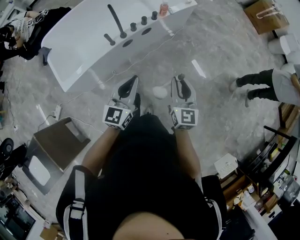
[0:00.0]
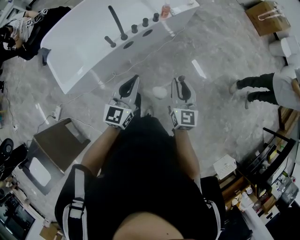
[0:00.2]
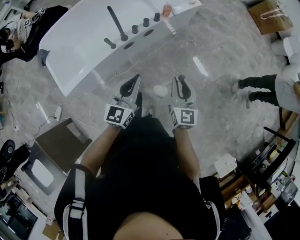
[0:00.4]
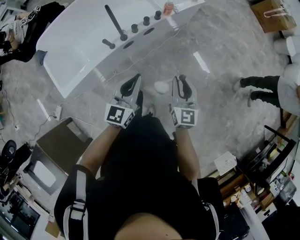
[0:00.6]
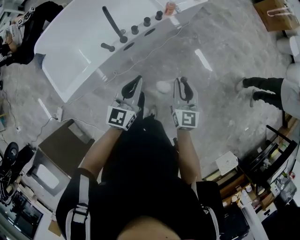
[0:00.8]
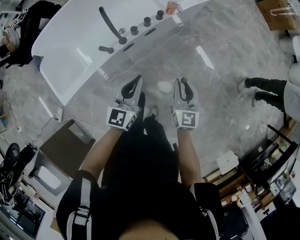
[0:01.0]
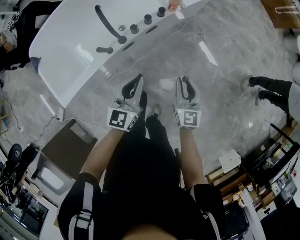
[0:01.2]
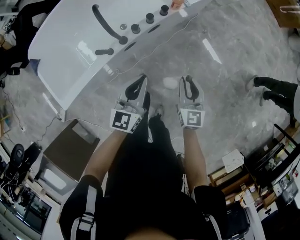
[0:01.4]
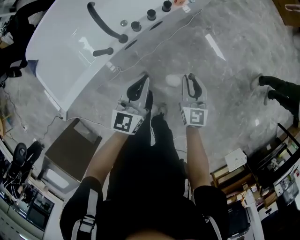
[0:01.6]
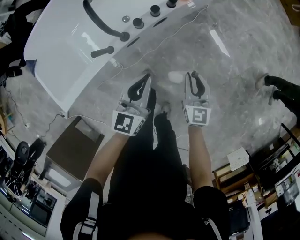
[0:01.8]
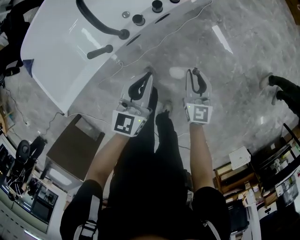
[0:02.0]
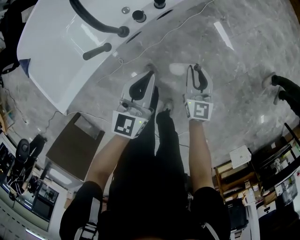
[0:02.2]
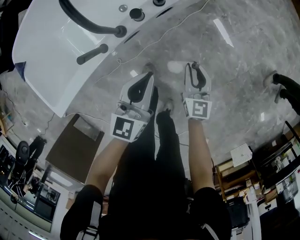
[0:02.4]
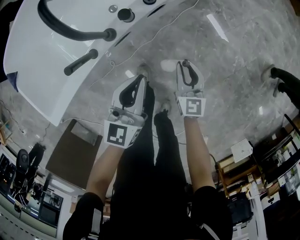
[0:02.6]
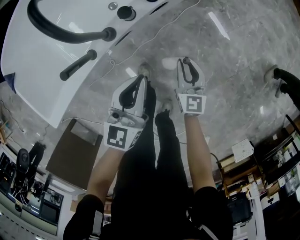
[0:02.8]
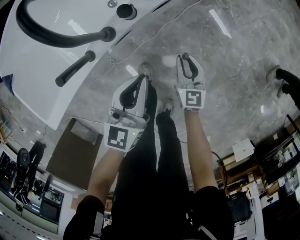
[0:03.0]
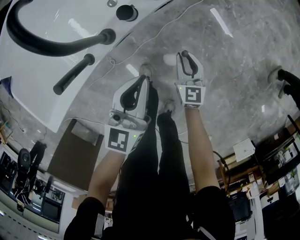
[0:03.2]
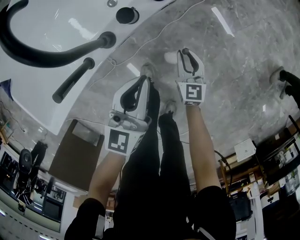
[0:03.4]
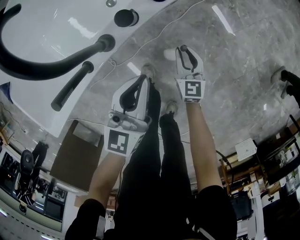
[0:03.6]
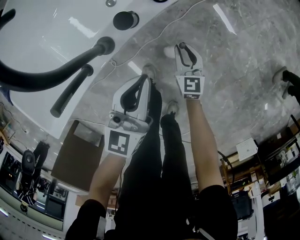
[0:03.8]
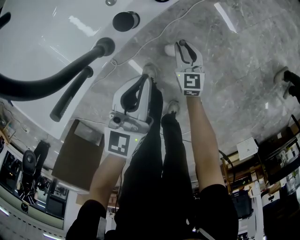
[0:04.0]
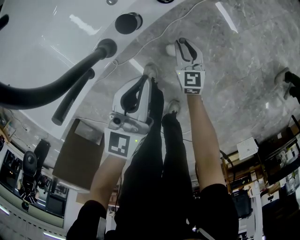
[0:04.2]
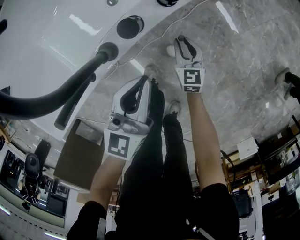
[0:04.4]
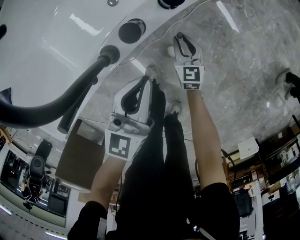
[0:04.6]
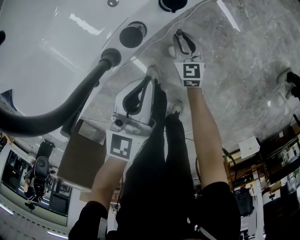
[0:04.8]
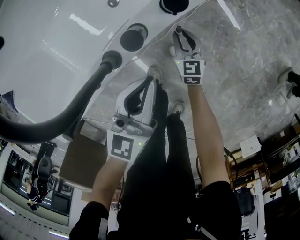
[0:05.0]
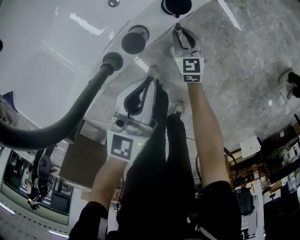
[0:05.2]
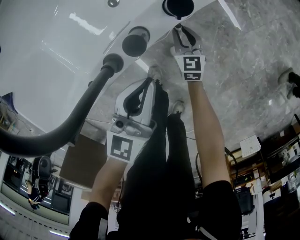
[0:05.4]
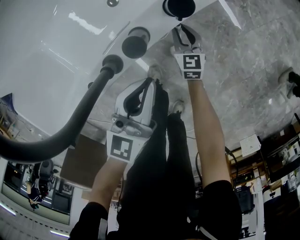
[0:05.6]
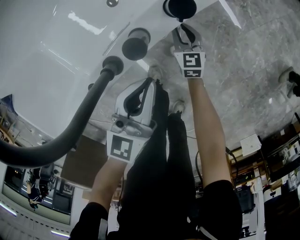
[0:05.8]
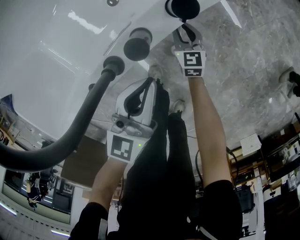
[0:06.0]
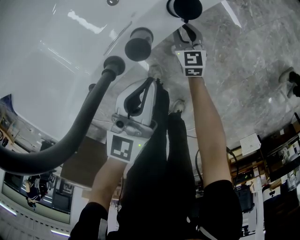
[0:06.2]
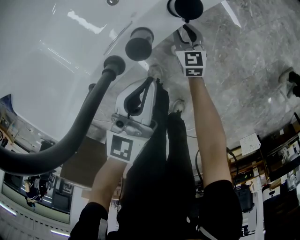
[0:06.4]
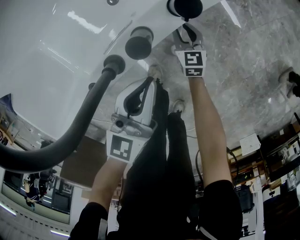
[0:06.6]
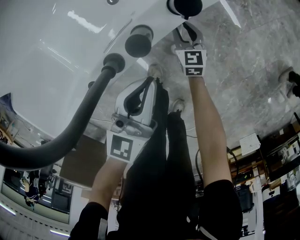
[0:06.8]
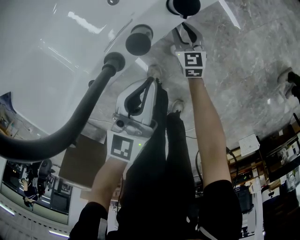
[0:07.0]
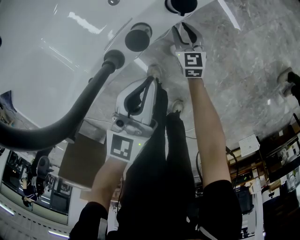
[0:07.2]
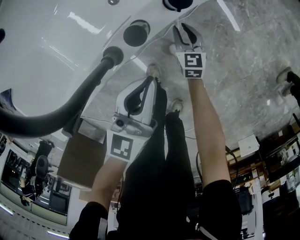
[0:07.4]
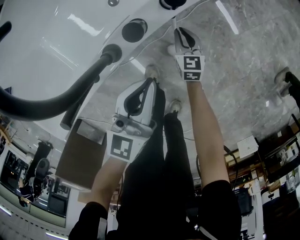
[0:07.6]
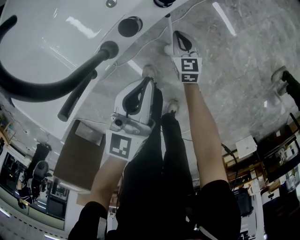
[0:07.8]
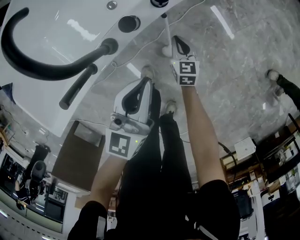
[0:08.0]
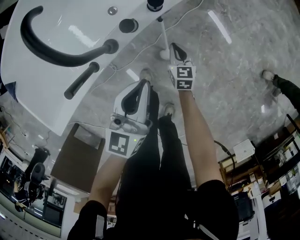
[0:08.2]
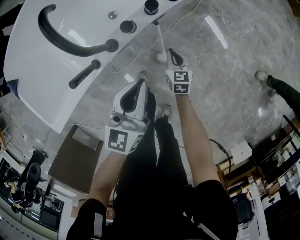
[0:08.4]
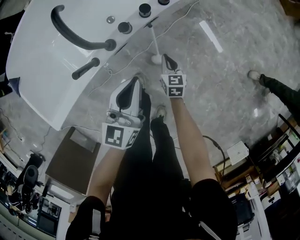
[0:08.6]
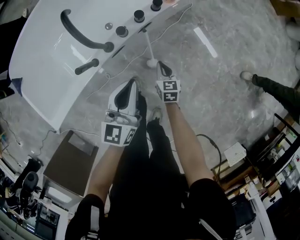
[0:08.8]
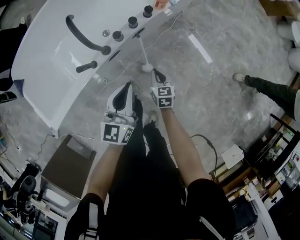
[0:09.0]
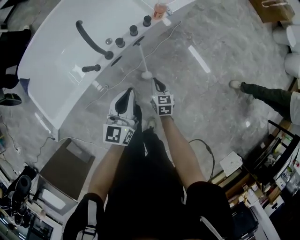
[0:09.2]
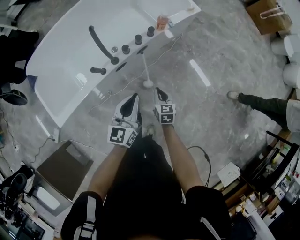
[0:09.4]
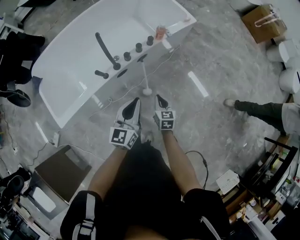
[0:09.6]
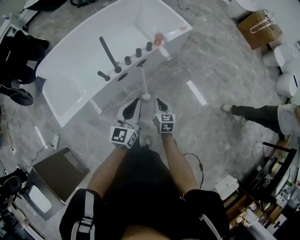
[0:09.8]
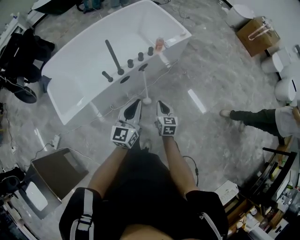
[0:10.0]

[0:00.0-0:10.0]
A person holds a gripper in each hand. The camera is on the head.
0:00.0 to 0:01.4: The right gripper goes some 30 cm downward and forward. Meanwhile the left gripper goes approximately 25 cm forward and downward.
0:01.4 to 0:02.8: Both grippers move downward, some 25 cm.
0:02.8 to 0:04.2: The right gripper moves downward and forward, approximately 20 cm; the left gripper heads downward and forward, covering some 10 cm.
0:04.2 to 0:05.8: The right gripper heads forward, covering approximately 10 cm.
0:05.8 to 0:07.2: The two grippers keep their place.
0:07.2 to 0:08.6: Both grippers move upward and backward, roughly 20 cm. The right gripper closes.
0:08.6 to 0:10.0: The two grippers go approximately 35 cm upward and backward.

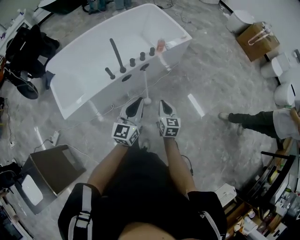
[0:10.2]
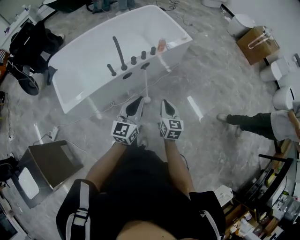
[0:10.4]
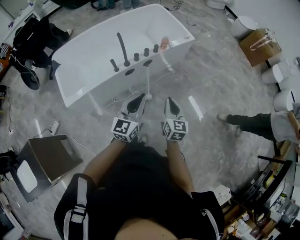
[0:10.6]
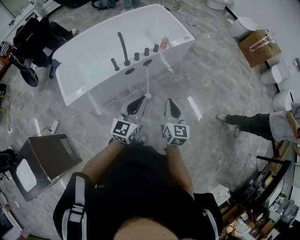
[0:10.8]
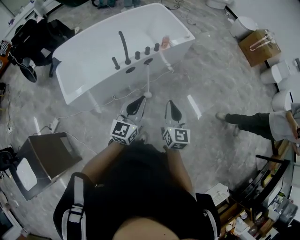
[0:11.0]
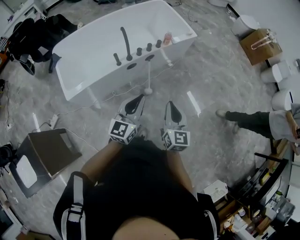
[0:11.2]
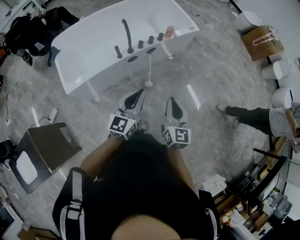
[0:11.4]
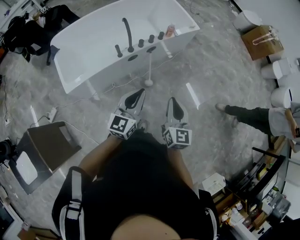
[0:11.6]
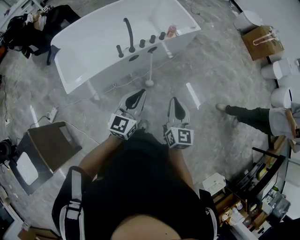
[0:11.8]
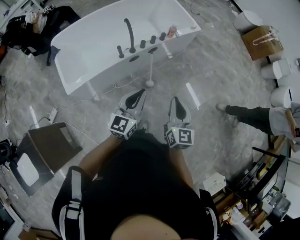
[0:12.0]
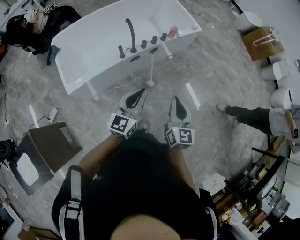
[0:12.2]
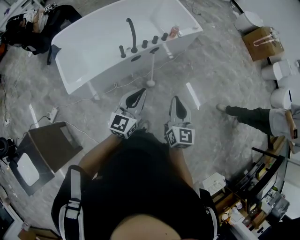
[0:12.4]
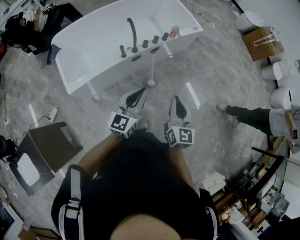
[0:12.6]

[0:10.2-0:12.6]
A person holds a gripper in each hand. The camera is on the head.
0:10.2 to 0:11.4: The left gripper heads backward and upward, covering roughly 10 cm. The right gripper goes approximately 20 cm upward and backward.
0:11.4 to 0:12.6: The grippers make only small movements.

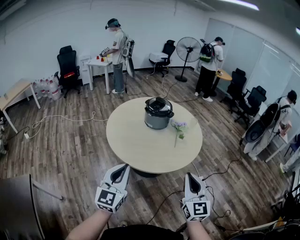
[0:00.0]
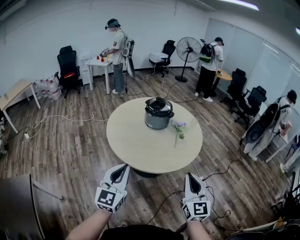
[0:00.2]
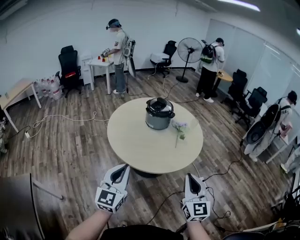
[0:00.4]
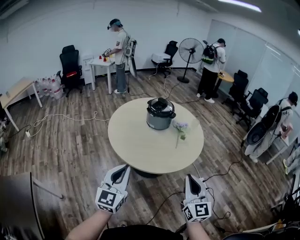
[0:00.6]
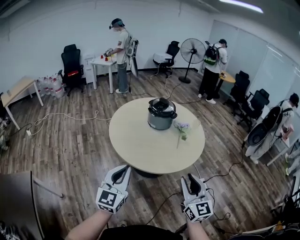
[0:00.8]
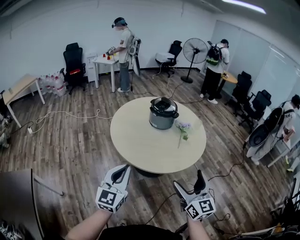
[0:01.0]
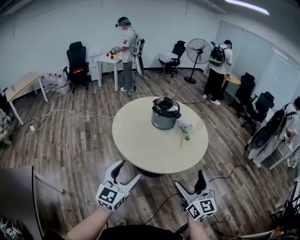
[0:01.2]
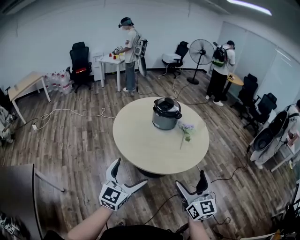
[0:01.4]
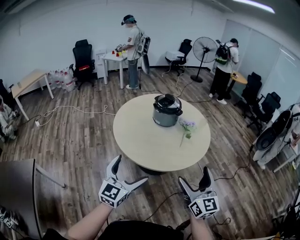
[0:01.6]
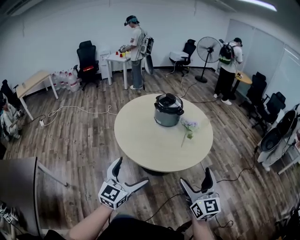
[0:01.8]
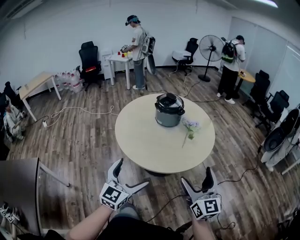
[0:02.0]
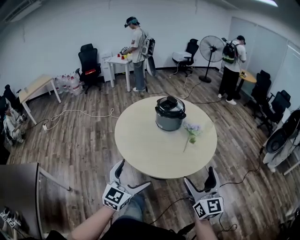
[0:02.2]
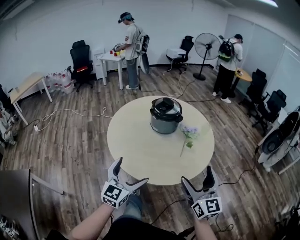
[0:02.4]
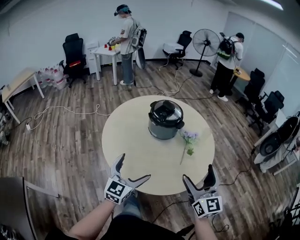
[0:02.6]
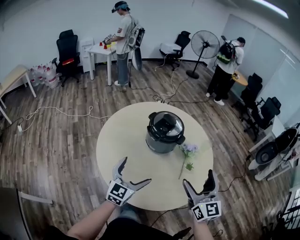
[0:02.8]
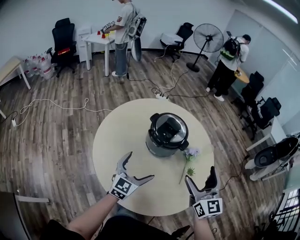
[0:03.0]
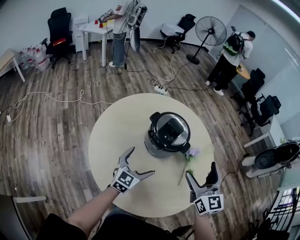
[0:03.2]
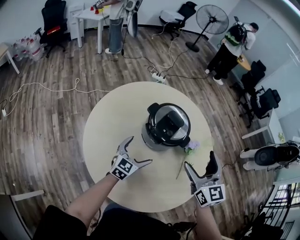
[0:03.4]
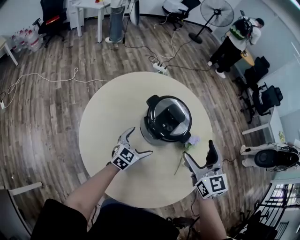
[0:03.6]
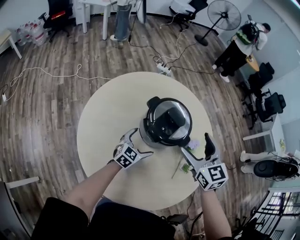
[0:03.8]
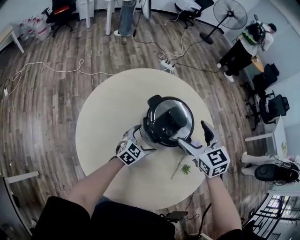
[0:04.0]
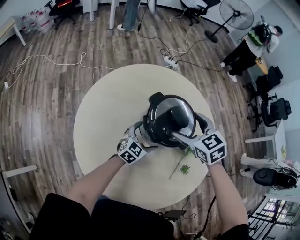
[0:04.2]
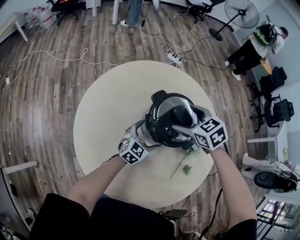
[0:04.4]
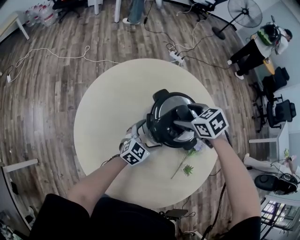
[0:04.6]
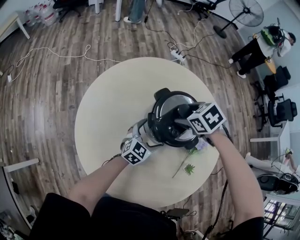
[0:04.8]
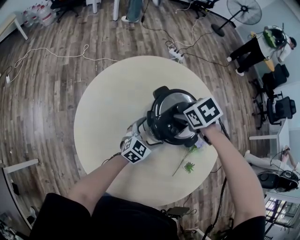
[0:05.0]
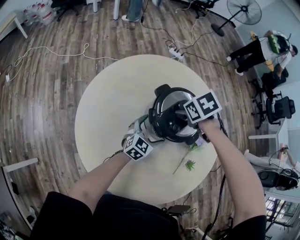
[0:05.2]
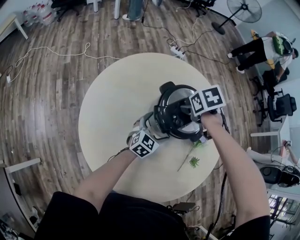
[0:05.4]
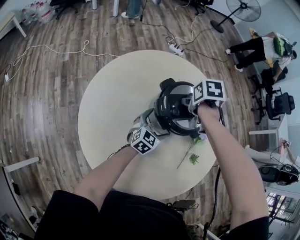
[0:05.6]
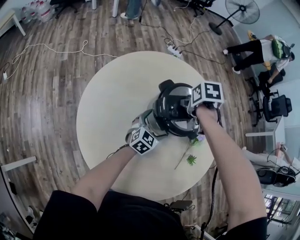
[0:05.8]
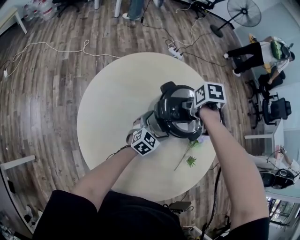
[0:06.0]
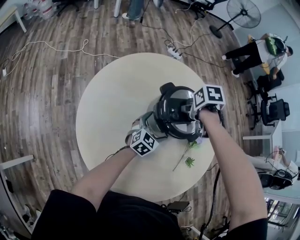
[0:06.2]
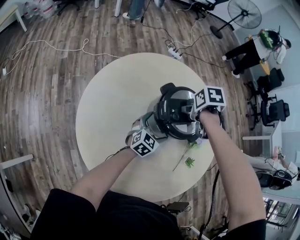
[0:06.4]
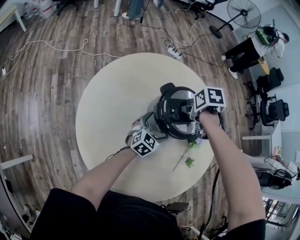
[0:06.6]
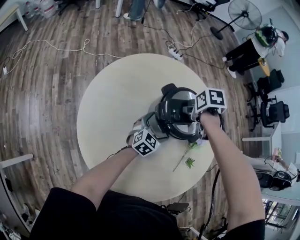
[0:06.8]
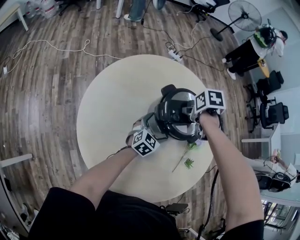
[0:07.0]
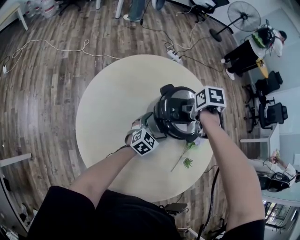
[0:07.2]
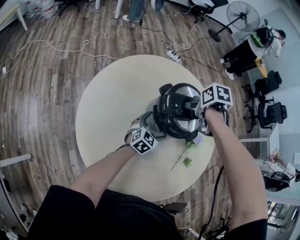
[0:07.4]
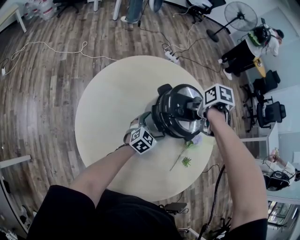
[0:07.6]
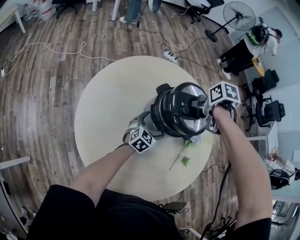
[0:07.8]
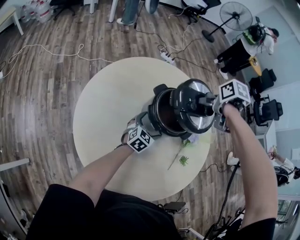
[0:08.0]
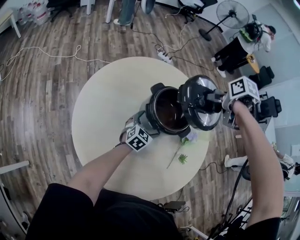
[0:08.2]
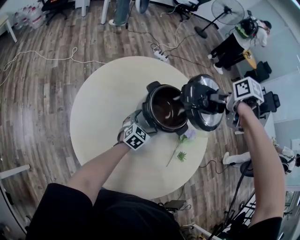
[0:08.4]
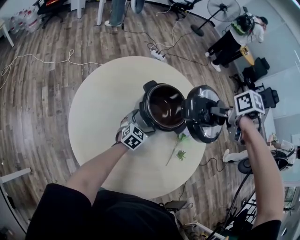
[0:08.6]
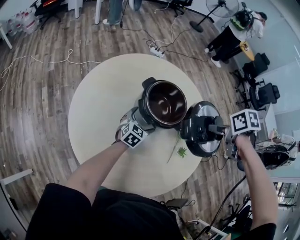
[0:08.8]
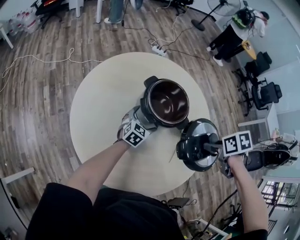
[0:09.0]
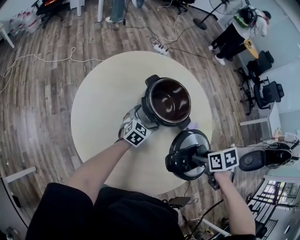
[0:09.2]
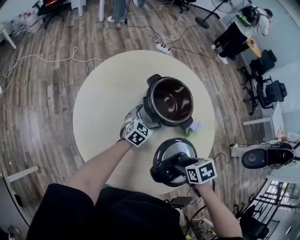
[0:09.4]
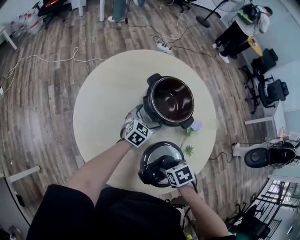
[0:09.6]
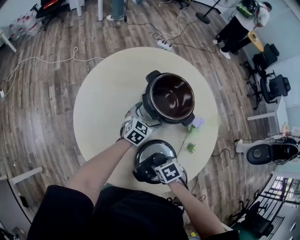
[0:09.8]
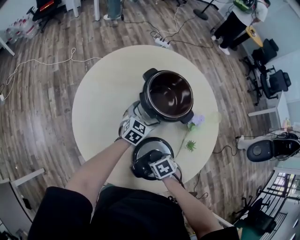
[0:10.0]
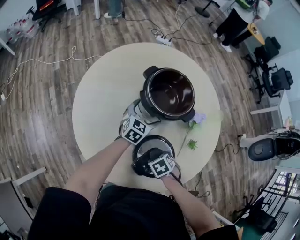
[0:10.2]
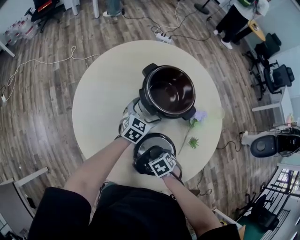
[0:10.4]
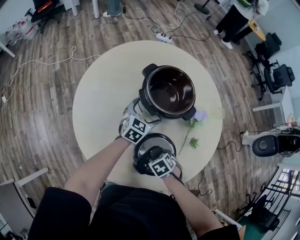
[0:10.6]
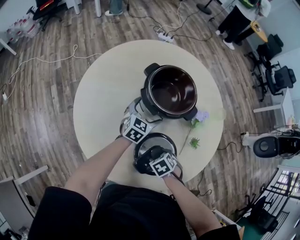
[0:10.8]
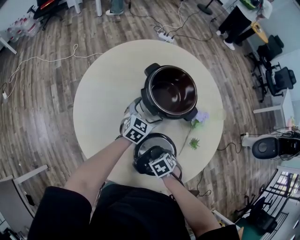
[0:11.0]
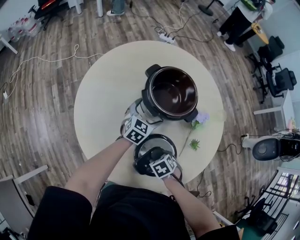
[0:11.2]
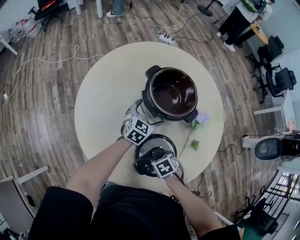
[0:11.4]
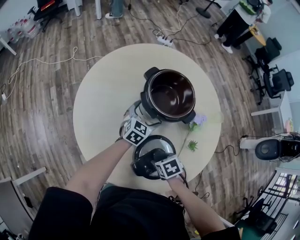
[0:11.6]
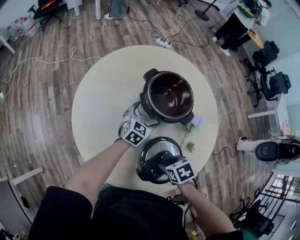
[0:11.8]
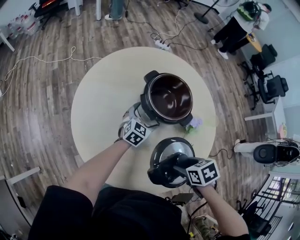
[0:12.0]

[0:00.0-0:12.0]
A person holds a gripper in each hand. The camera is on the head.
0:00.0 to 0:01.6: The right gripper ends up roughly 5 cm from where it was, and opens up. Meanwhile the left gripper goes approximately 5 cm to the right, and opens up.
0:01.6 to 0:03.0: The two grippers travel together, forward, some 50 cm.
0:03.0 to 0:04.4: Both grippers move forward and downward, some 30 cm. The right gripper points its fingers approximately 50 degrees further downward.
0:04.4 to 0:06.0: The right gripper rolls clockwise, seen from behind, by about 40 degrees, and closes.
0:06.0 to 0:07.6: The grippers make only small movements.
0:07.6 to 0:09.0: The right gripper travels upward and back again, some 15 cm each way.
0:09.0 to 0:10.4: The right gripper travels downward by approximately 30 cm, and swivels roughly 30 degrees.
0:10.4 to 0:12.0: The right gripper shifts some 15 cm upward.
